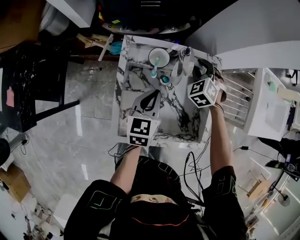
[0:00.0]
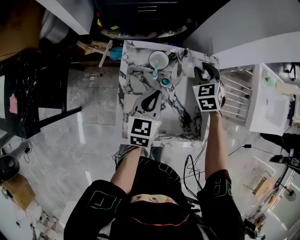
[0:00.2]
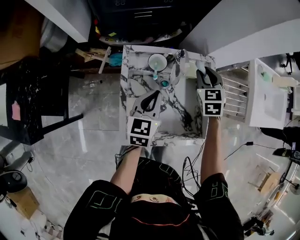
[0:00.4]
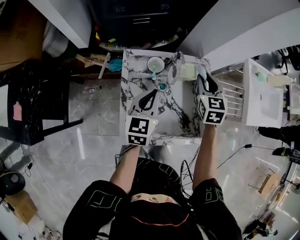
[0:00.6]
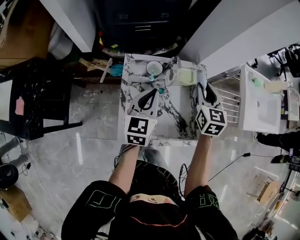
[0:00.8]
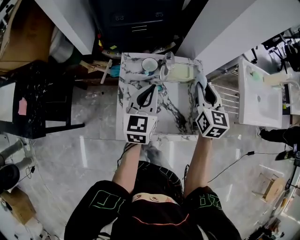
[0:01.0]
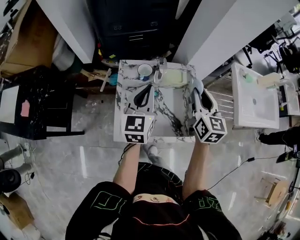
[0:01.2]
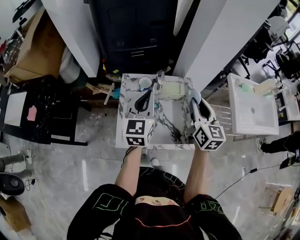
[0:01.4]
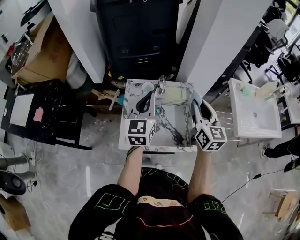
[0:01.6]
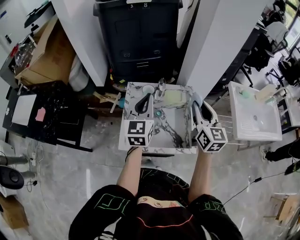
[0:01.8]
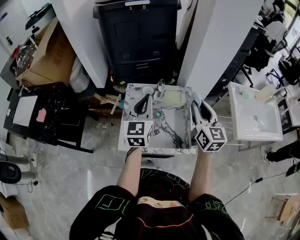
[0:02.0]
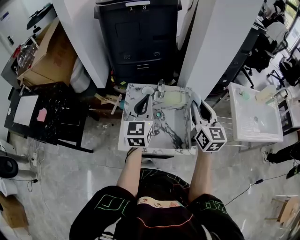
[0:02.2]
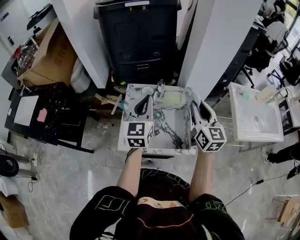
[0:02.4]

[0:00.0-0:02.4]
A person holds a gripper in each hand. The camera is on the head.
0:00.0 to 0:01.2: The right gripper shifts about 25 cm upward and backward, and twists roughly 60 degrees clockwise, seen from behind; the left gripper moves upward, approximately 20 cm, and rotates about 20 degrees.
0:01.2 to 0:02.4: Both grippers move upward, roughly 5 cm.

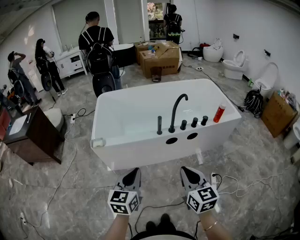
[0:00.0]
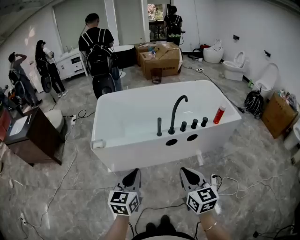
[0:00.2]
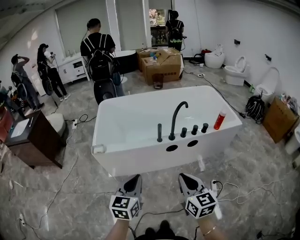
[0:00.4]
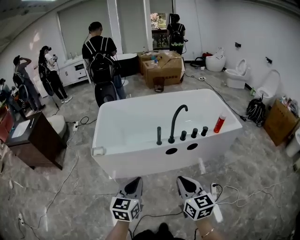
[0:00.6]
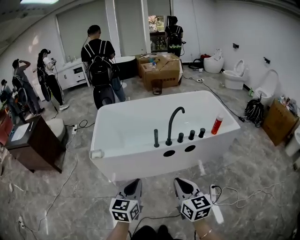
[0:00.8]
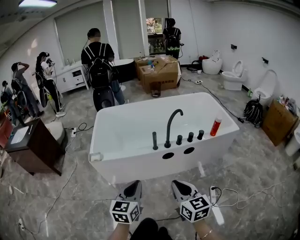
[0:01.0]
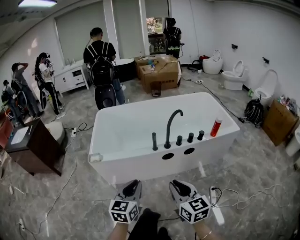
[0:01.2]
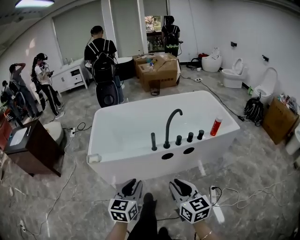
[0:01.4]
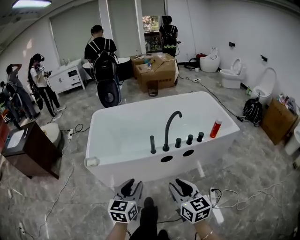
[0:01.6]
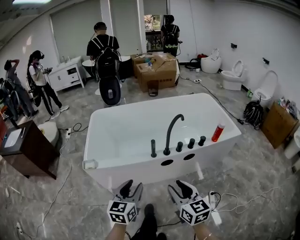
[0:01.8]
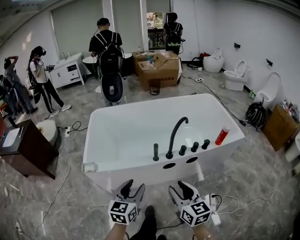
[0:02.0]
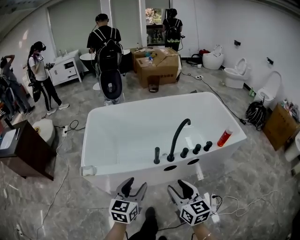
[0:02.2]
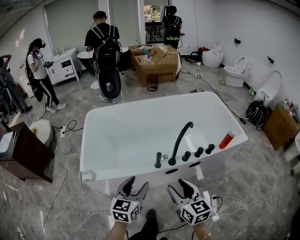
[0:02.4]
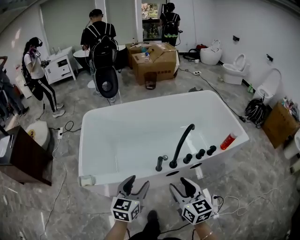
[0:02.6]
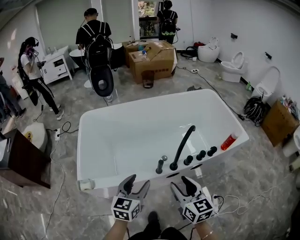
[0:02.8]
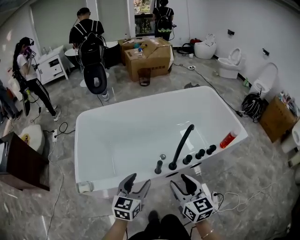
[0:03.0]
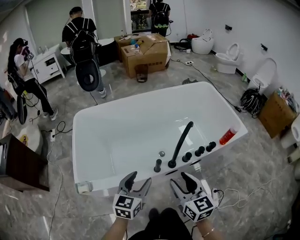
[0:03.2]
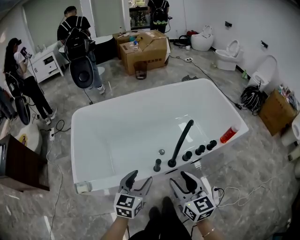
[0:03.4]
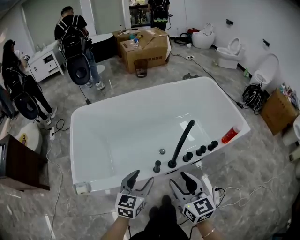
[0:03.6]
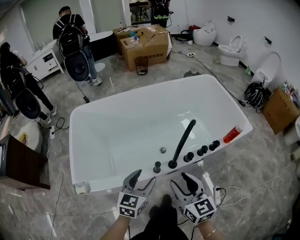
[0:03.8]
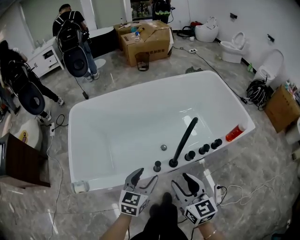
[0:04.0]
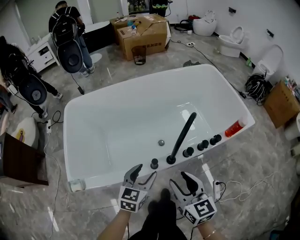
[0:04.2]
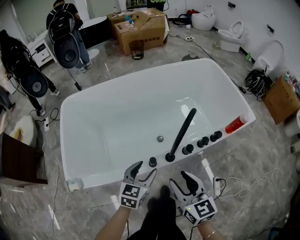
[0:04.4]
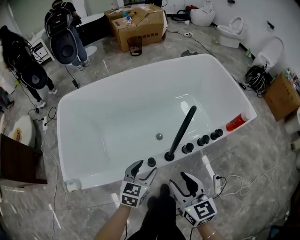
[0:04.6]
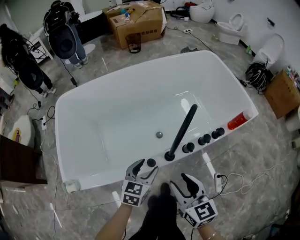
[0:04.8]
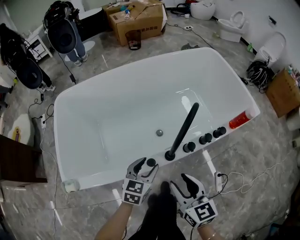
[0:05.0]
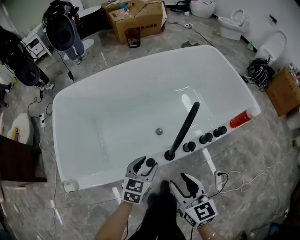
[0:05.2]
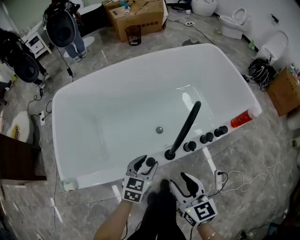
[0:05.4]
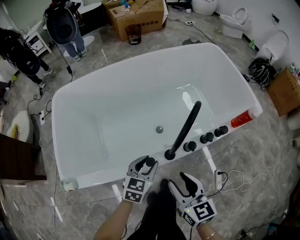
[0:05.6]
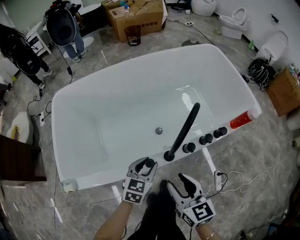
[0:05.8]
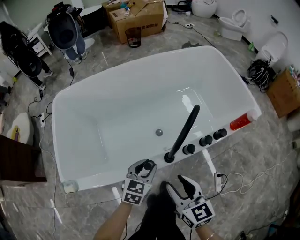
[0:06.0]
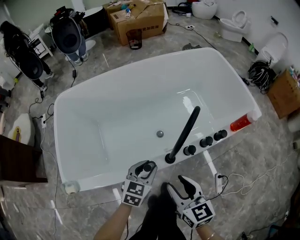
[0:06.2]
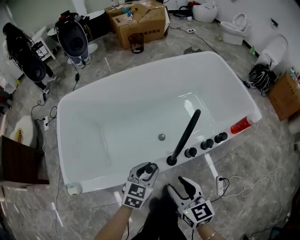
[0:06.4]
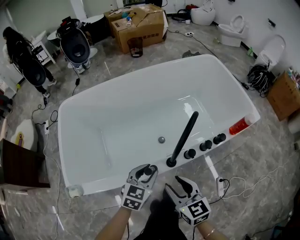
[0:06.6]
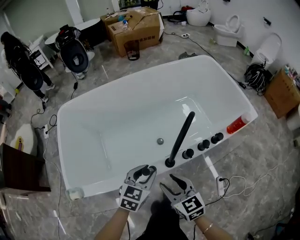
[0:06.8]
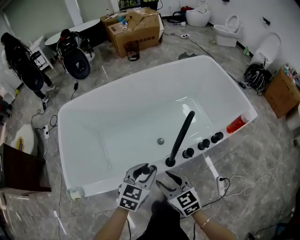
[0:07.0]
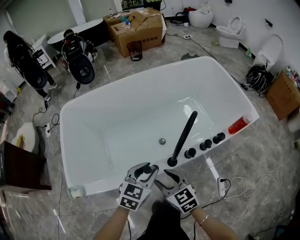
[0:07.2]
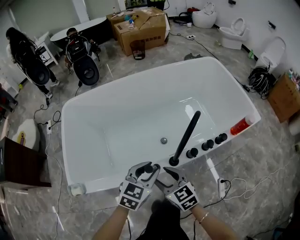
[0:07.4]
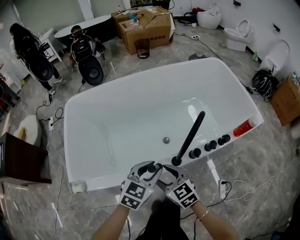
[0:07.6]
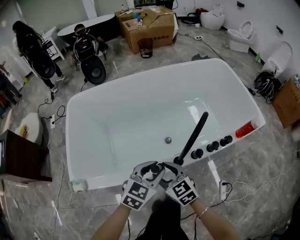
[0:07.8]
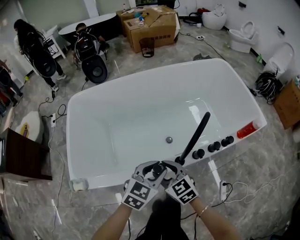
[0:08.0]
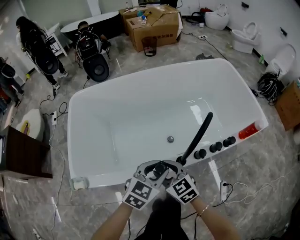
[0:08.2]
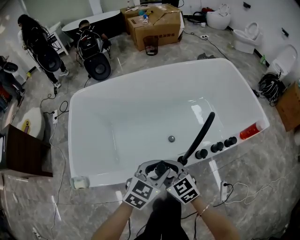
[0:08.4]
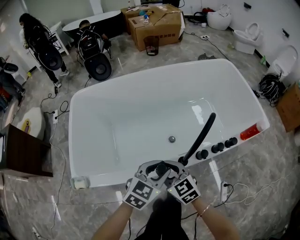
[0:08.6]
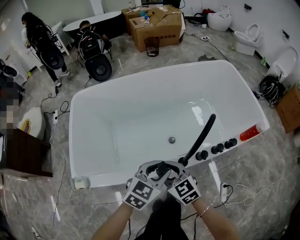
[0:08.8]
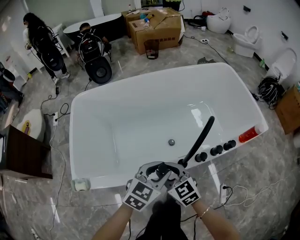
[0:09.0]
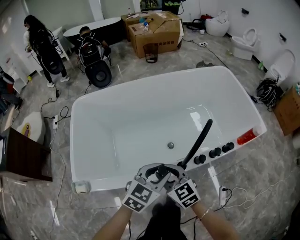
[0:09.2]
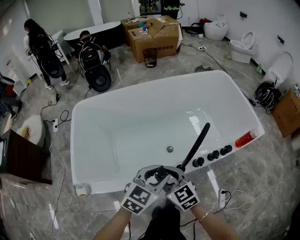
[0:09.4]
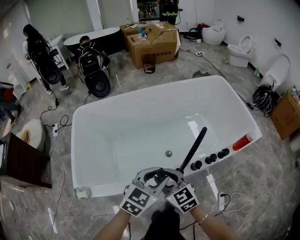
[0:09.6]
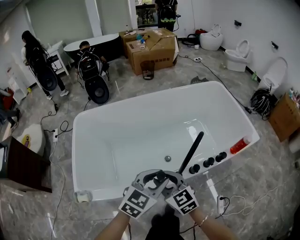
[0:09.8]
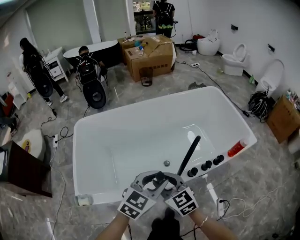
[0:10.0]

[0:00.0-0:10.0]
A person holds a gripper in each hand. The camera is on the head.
0:00.0 to 0:01.4: The left gripper moves to the right, roughly 5 cm.
0:01.4 to 0:02.8: Both grippers travel together forward, approximately 40 cm. The right gripper opens. The left gripper opens up.
0:02.8 to 0:04.2: The right gripper moves forward and downward, some 15 cm; the left gripper heads forward, downward and to the right, covering approximately 20 cm.
0:04.2 to 0:05.8: Both grippers move downward and forward, about 15 cm. The left gripper closes up.
0:05.8 to 0:07.2: The right gripper shifts some 5 cm to the left. The left gripper goes about 10 cm upward.
0:07.2 to 0:08.6: The right gripper goes roughly 5 cm to the left.
0:08.6 to 0:10.0: Both grippers move upward, roughly 15 cm.

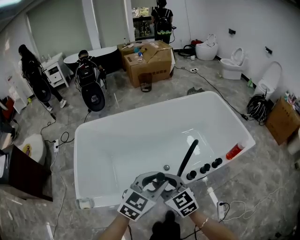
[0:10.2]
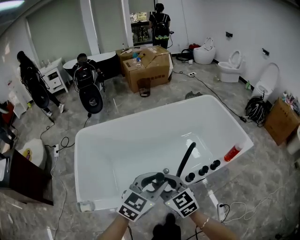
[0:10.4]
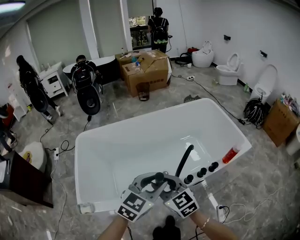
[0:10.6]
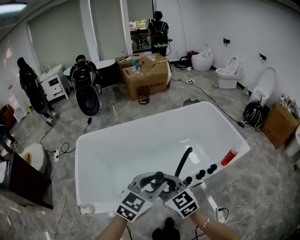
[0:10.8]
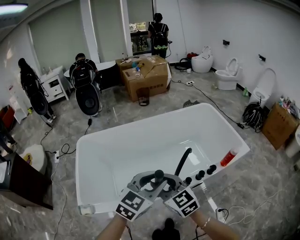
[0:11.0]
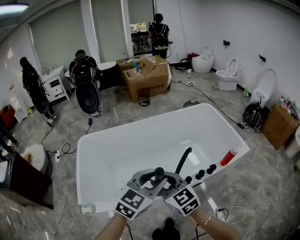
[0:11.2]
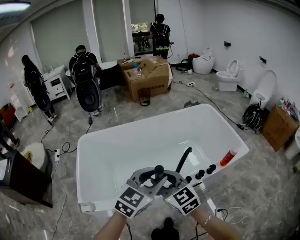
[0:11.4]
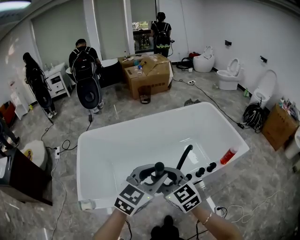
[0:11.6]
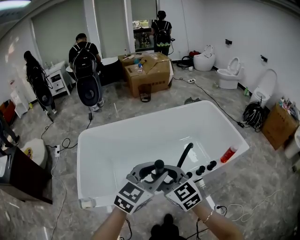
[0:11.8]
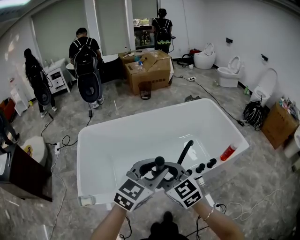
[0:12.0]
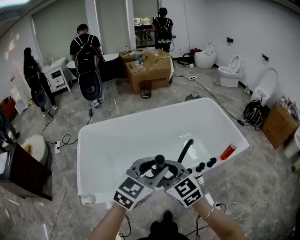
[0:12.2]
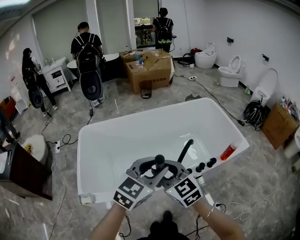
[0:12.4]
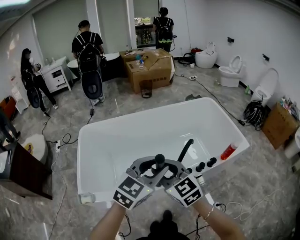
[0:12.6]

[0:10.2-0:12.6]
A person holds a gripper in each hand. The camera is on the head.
0:10.2 to 0:11.4: Both grippers travel together upward, some 10 cm.
0:11.4 to 0:12.6: There are only small adjustments of the grippers.

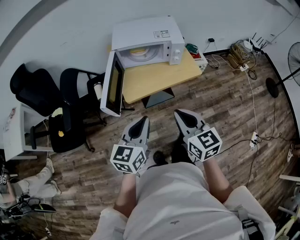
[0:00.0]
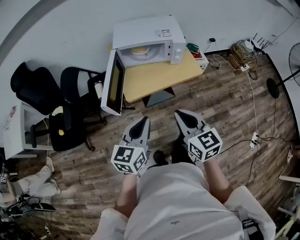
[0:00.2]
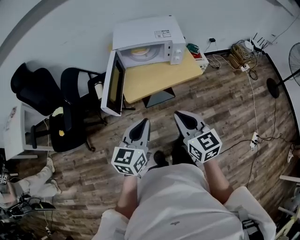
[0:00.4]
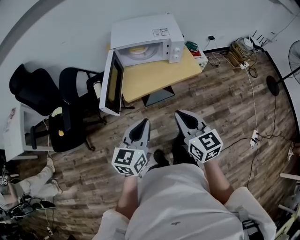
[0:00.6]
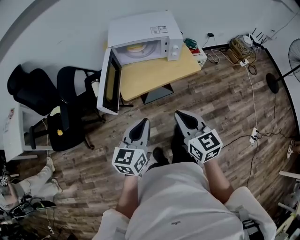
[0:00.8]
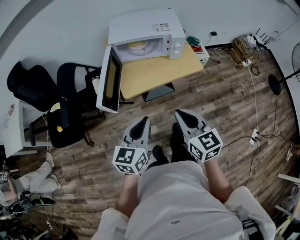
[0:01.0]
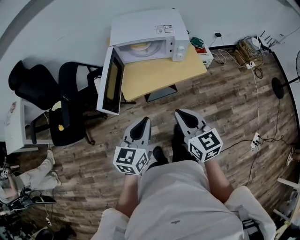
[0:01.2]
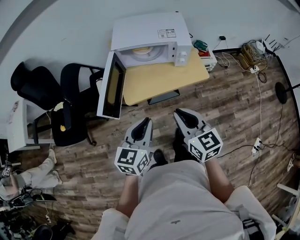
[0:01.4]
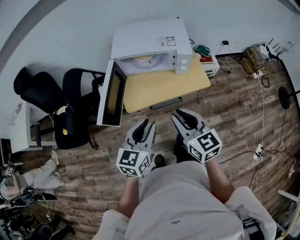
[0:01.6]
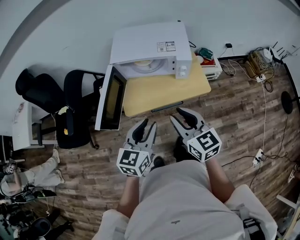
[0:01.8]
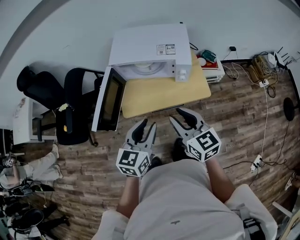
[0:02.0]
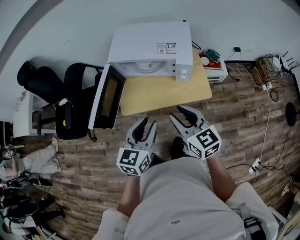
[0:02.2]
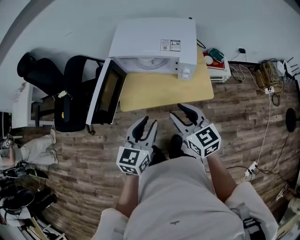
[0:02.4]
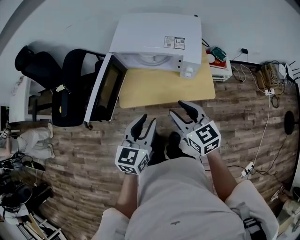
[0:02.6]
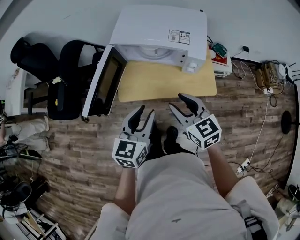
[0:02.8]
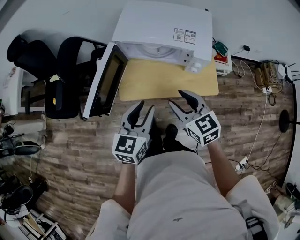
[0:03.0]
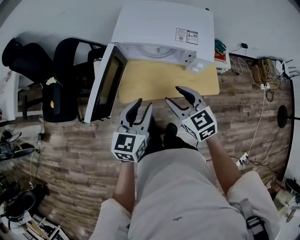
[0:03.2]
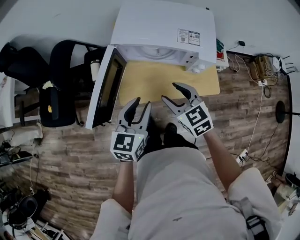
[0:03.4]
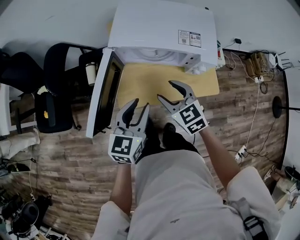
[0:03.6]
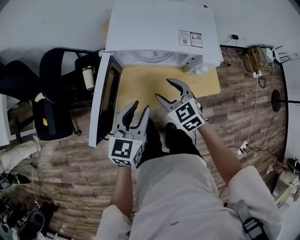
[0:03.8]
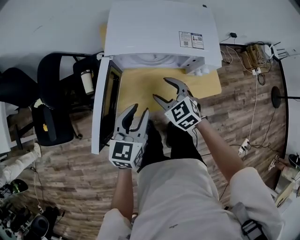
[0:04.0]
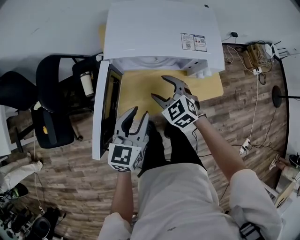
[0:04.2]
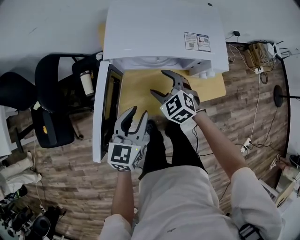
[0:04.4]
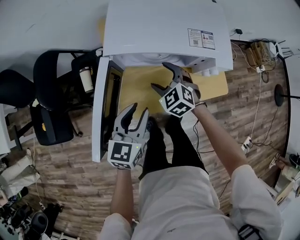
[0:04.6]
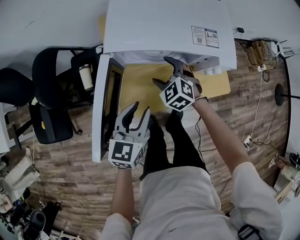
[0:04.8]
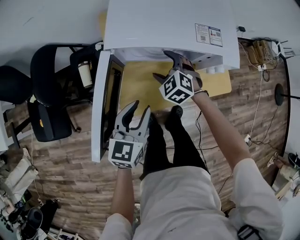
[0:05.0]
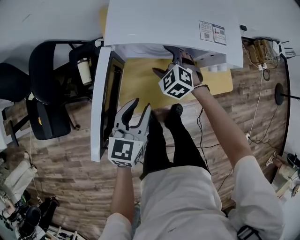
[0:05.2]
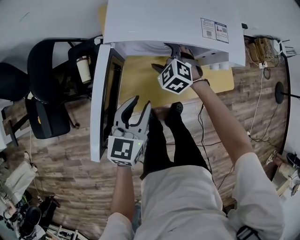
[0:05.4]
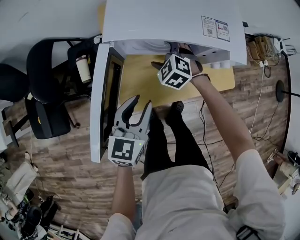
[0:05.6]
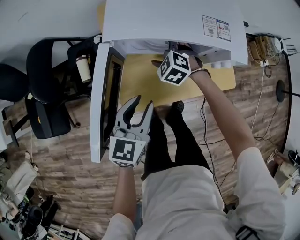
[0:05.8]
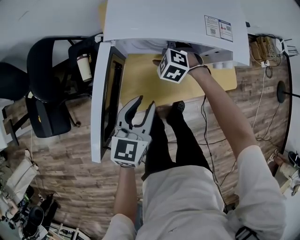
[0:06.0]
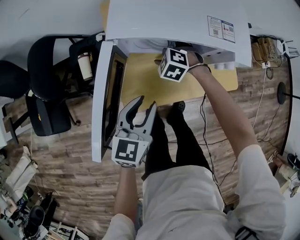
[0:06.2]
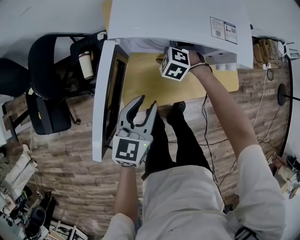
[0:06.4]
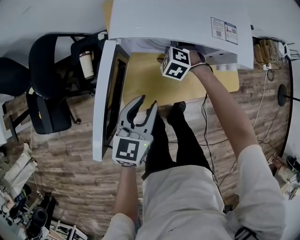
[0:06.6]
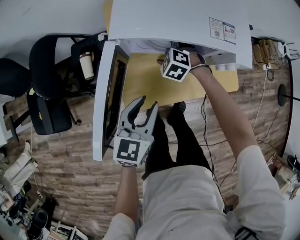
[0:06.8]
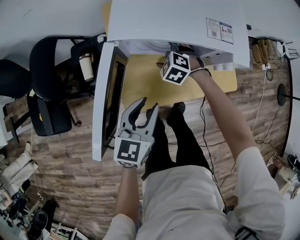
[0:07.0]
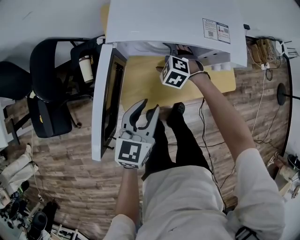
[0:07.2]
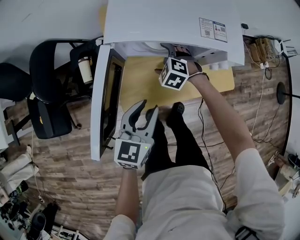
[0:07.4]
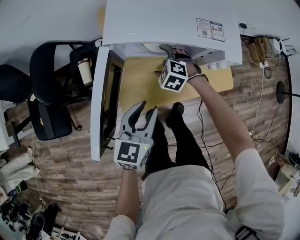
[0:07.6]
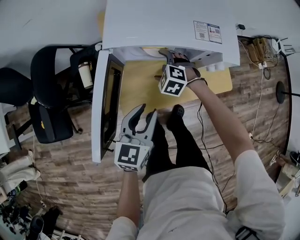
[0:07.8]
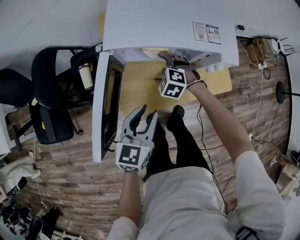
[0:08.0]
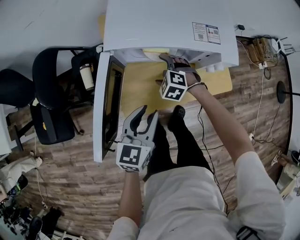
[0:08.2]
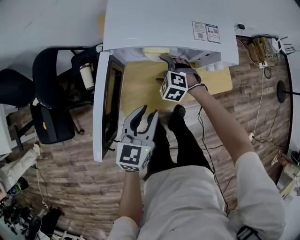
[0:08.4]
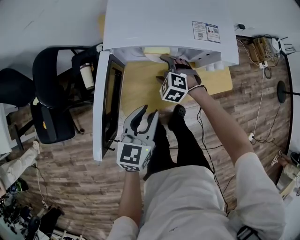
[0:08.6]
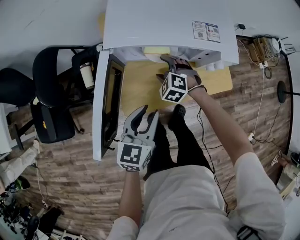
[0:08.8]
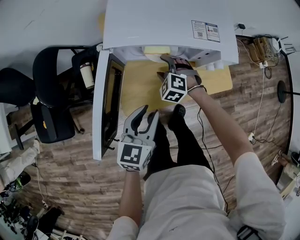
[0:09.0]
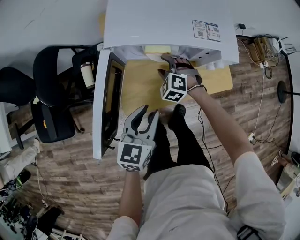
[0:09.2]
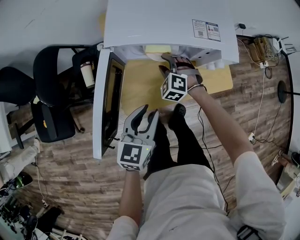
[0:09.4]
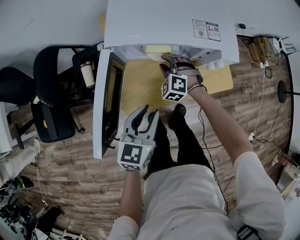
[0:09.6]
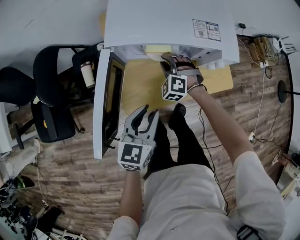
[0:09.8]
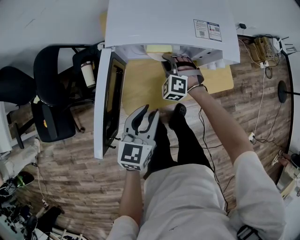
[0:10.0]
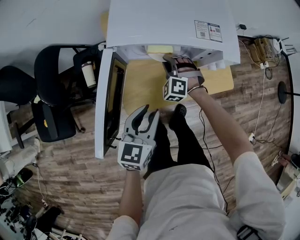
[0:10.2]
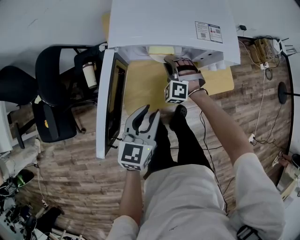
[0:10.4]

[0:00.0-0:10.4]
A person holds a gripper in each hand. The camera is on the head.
0:00.0 to 0:01.4: Both grippers travel together forward, approximately 5 cm.
0:01.4 to 0:03.0: The left gripper shifts about 15 cm forward and to the right, and opens up, while the right gripper travels forward by approximately 15 cm, and turns by roughly 20 degrees.
0:03.0 to 0:04.4: The right gripper shifts approximately 25 cm forward, downward and to the left, and turns by some 30 degrees. Meanwhile the left gripper shifts approximately 15 cm forward, downward and to the left.
0:04.4 to 0:06.0: The right gripper is displaced forward and downward by about 15 cm, and turns by approximately 20 degrees.
0:06.0 to 0:07.4: There are only small adjustments of the grippers.
0:07.4 to 0:09.0: The right gripper closes.
0:09.0 to 0:10.4: The right gripper turns by some 20 degrees, and closes.
